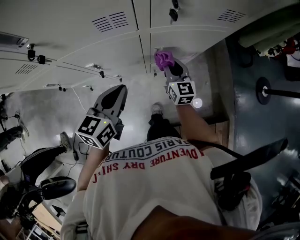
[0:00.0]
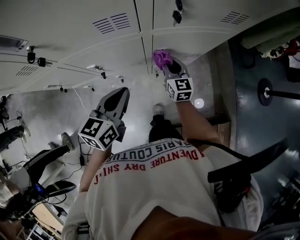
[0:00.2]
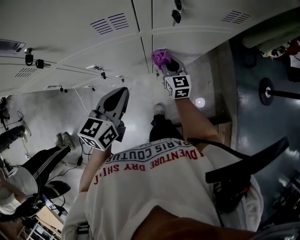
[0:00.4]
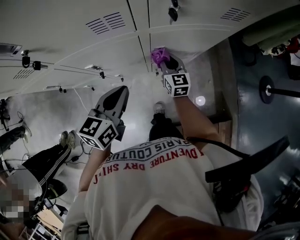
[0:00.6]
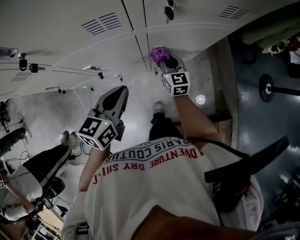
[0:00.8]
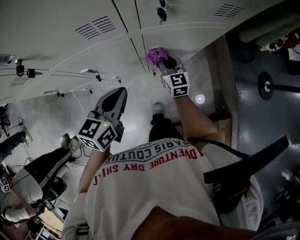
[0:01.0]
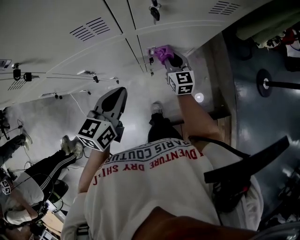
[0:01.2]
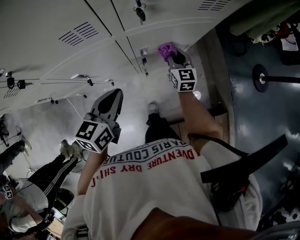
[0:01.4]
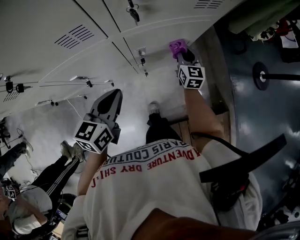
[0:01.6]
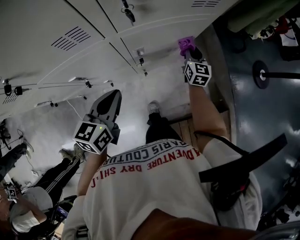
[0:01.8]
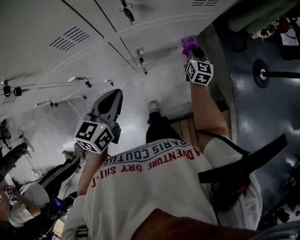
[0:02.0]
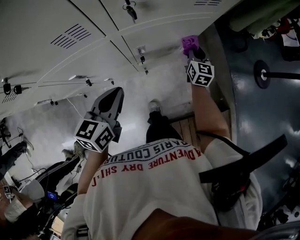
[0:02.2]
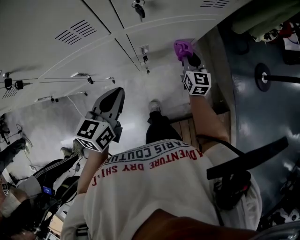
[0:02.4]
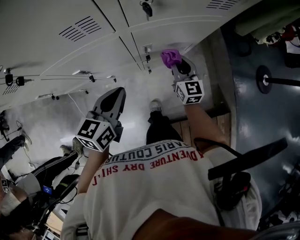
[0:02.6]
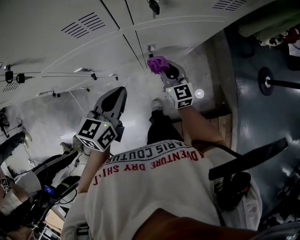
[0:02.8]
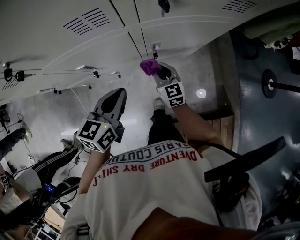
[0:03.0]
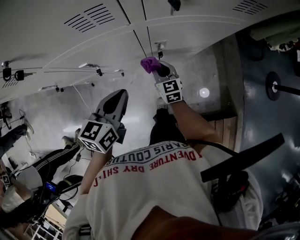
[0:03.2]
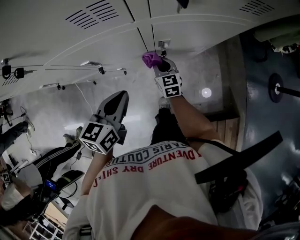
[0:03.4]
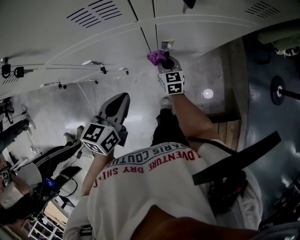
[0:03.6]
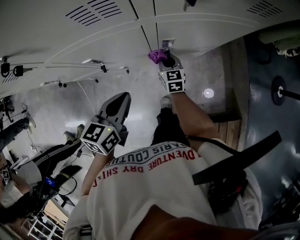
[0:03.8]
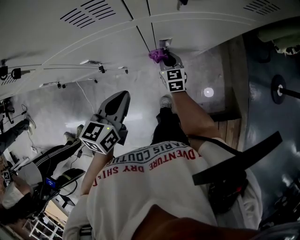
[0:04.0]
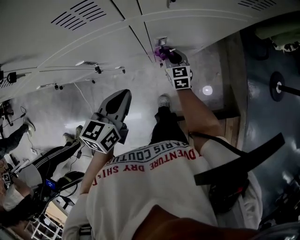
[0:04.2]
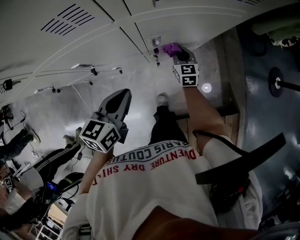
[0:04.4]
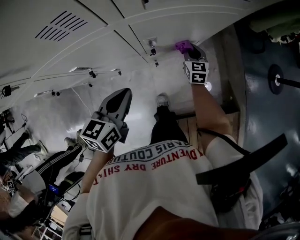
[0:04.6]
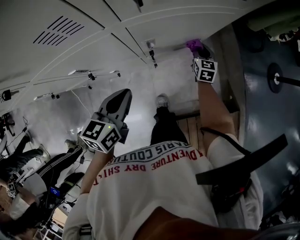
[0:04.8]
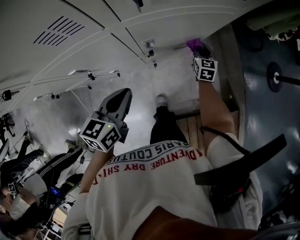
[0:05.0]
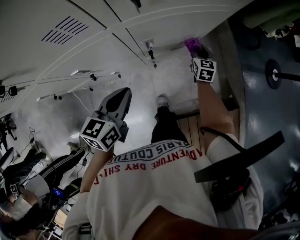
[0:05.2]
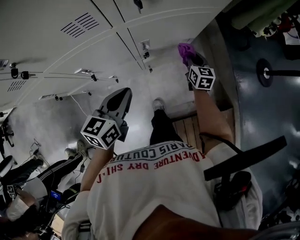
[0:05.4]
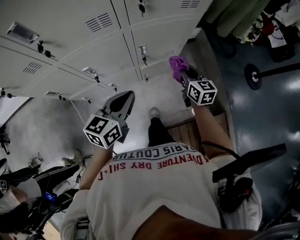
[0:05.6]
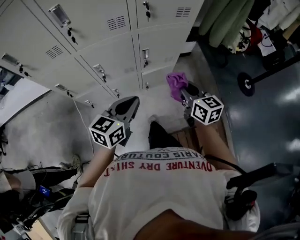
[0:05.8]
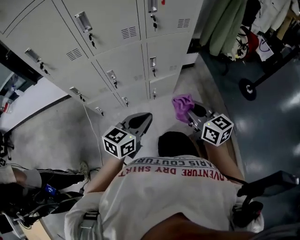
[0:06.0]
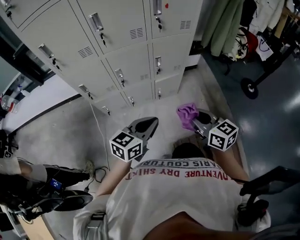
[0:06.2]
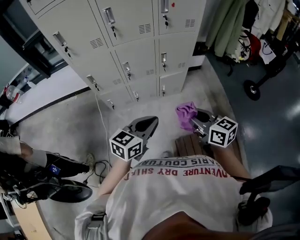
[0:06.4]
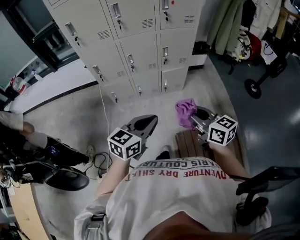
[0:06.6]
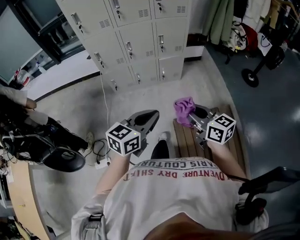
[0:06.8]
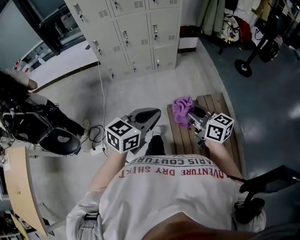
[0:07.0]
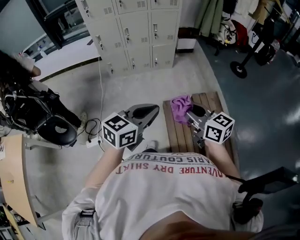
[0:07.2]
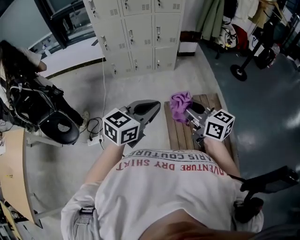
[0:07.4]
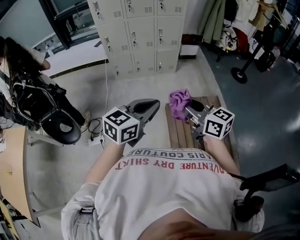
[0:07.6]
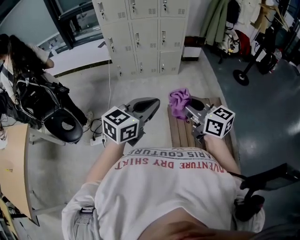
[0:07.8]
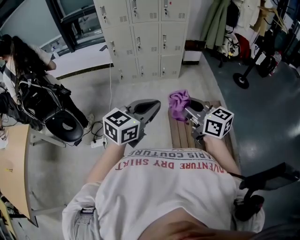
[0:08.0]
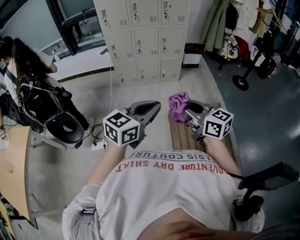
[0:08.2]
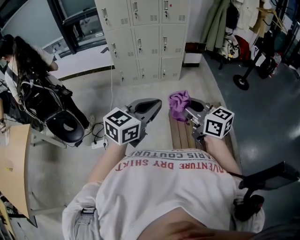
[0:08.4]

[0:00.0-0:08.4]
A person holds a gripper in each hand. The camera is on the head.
0:00.0 to 0:01.4: The right gripper moves to the right and forward, some 10 cm.
0:01.4 to 0:02.8: The right gripper is displaced backward by approximately 10 cm, and moves approximately 10 cm to the right and comes back.
0:02.8 to 0:04.2: The right gripper travels downward and forward by roughly 15 cm.
0:04.2 to 0:05.6: The right gripper is displaced upward, to the right and backward by roughly 30 cm, while the left gripper travels upward, backward and to the right by approximately 15 cm.
0:05.6 to 0:07.0: Both grippers are carried backward, some 80 cm. The right gripper rotates about 30 degrees.
0:07.0 to 0:08.4: Both grippers move backward and upward, about 20 cm.

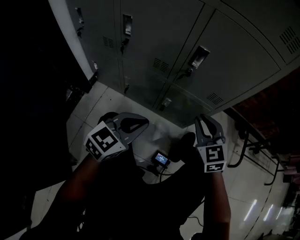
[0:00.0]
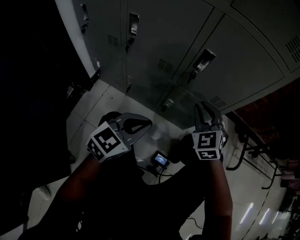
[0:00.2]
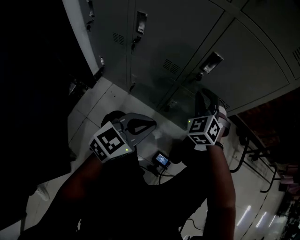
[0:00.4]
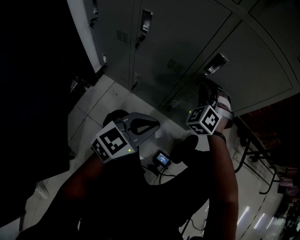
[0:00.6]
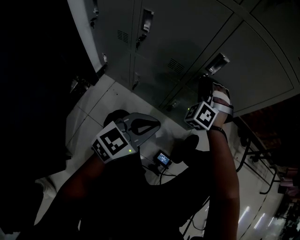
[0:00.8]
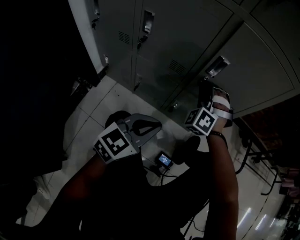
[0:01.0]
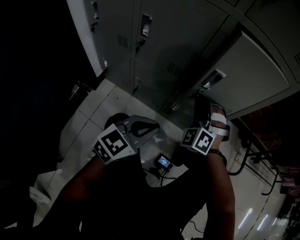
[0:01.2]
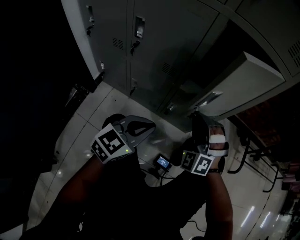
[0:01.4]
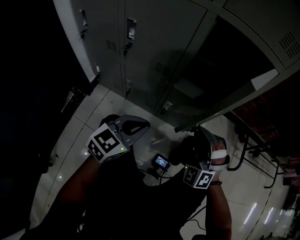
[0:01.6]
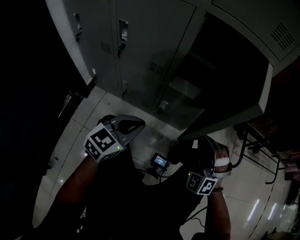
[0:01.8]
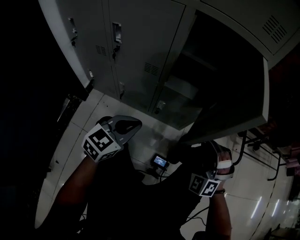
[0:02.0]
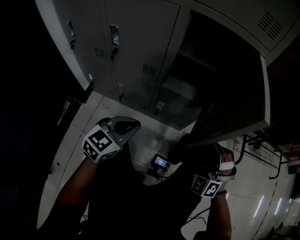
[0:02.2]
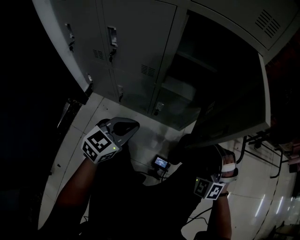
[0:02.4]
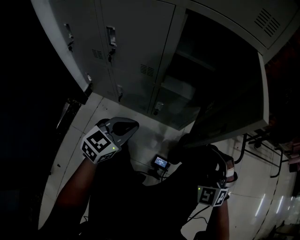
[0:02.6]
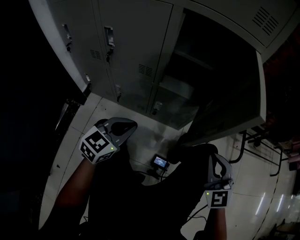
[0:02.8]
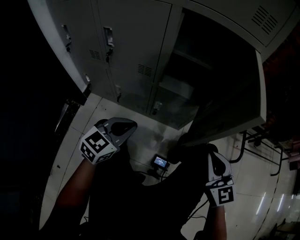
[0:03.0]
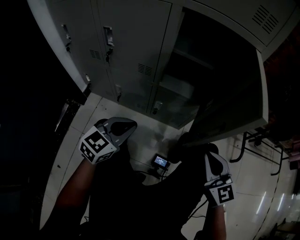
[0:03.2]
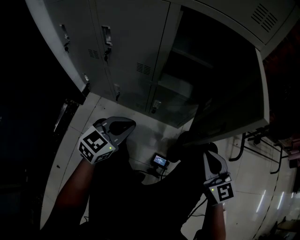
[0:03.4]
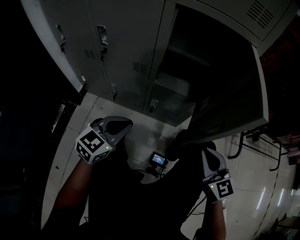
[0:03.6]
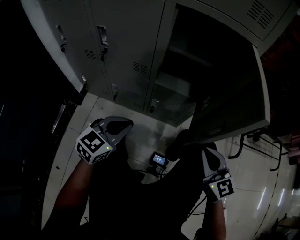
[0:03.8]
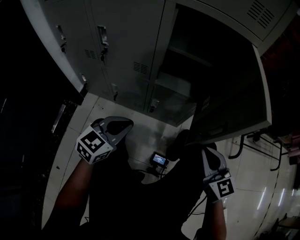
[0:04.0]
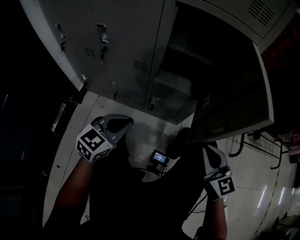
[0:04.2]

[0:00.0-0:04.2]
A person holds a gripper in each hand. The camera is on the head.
0:00.0 to 0:01.4: The right gripper is displaced to the left by about 5 cm, reaches approximately 10 cm forward, then returns, and twists about 50 degrees counterclockwise, seen from behind.
0:01.4 to 0:02.8: The right gripper is displaced to the right and backward by approximately 20 cm, and twists some 50 degrees clockwise, seen from behind.
0:02.8 to 0:04.2: The right gripper turns by about 30 degrees.

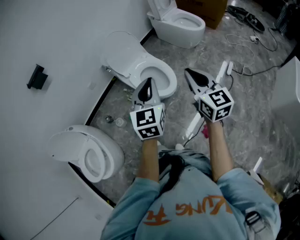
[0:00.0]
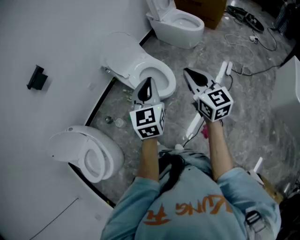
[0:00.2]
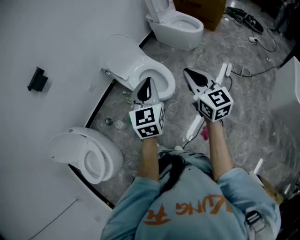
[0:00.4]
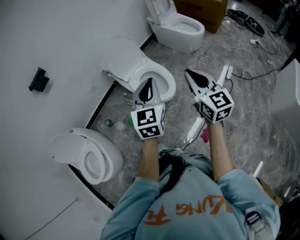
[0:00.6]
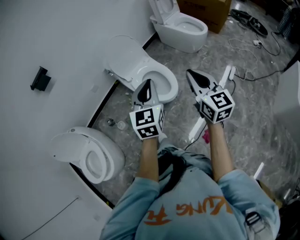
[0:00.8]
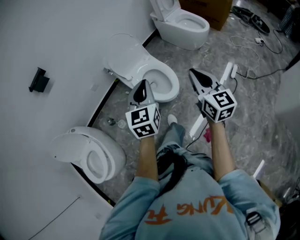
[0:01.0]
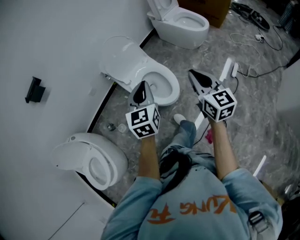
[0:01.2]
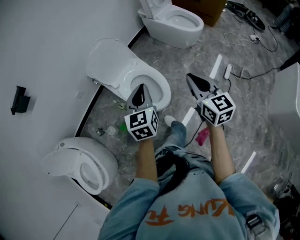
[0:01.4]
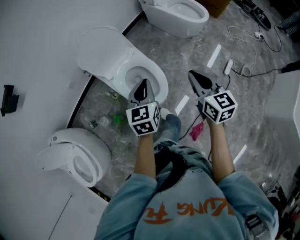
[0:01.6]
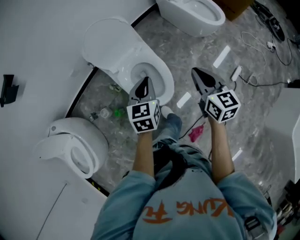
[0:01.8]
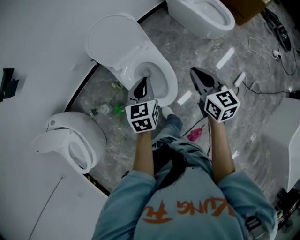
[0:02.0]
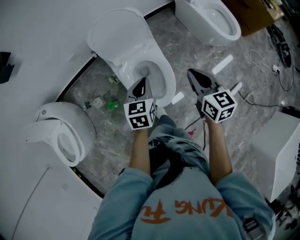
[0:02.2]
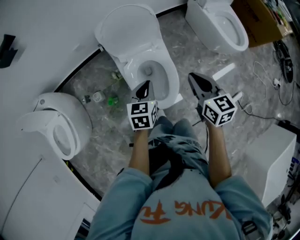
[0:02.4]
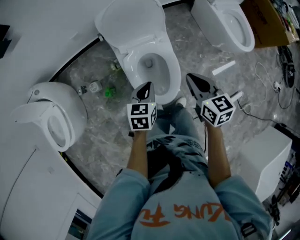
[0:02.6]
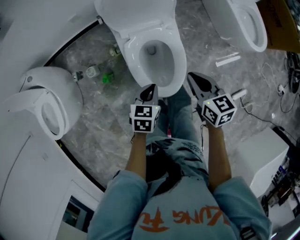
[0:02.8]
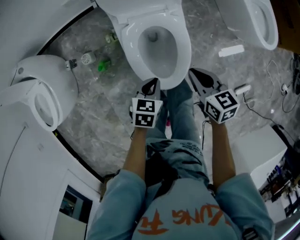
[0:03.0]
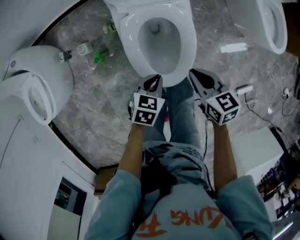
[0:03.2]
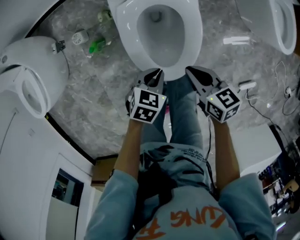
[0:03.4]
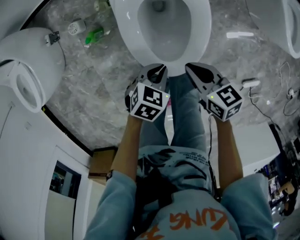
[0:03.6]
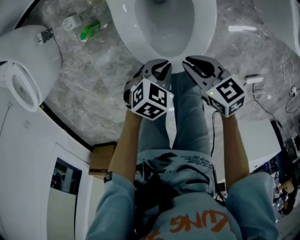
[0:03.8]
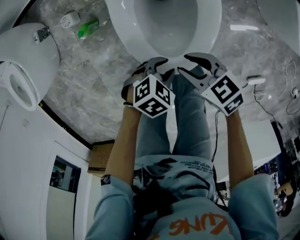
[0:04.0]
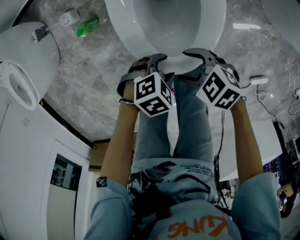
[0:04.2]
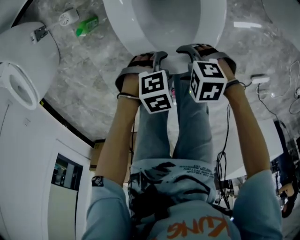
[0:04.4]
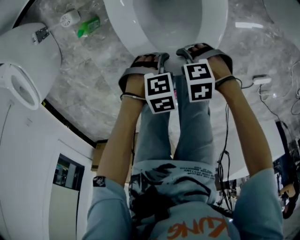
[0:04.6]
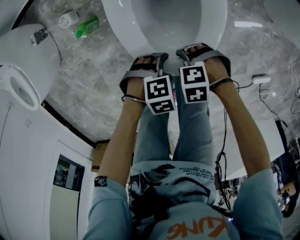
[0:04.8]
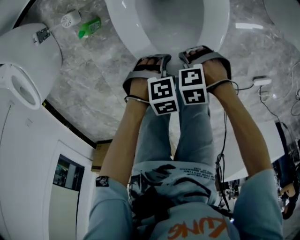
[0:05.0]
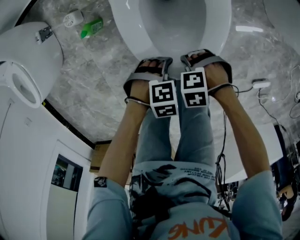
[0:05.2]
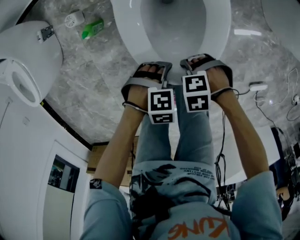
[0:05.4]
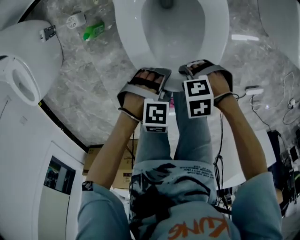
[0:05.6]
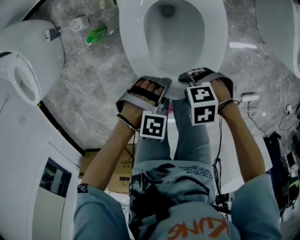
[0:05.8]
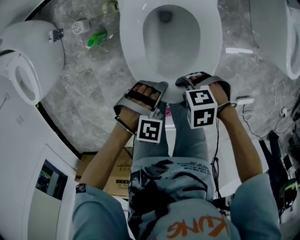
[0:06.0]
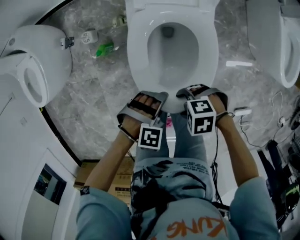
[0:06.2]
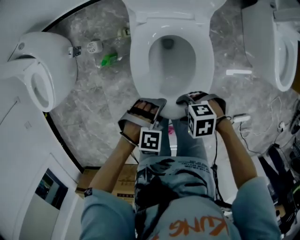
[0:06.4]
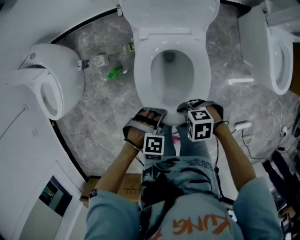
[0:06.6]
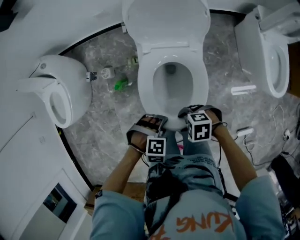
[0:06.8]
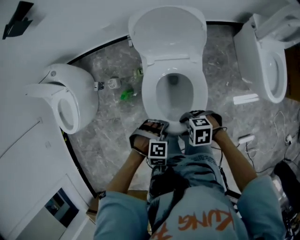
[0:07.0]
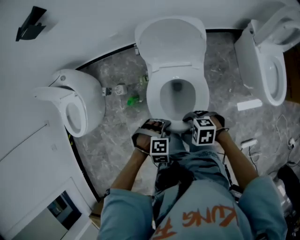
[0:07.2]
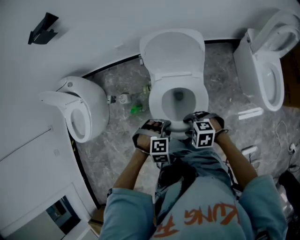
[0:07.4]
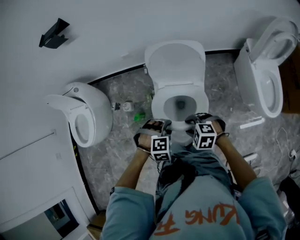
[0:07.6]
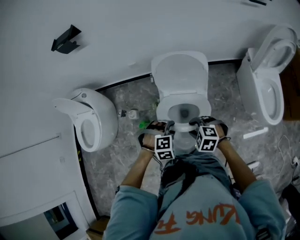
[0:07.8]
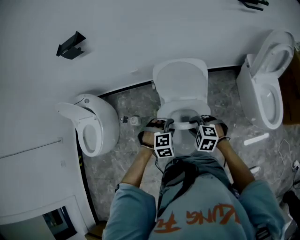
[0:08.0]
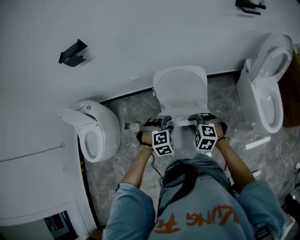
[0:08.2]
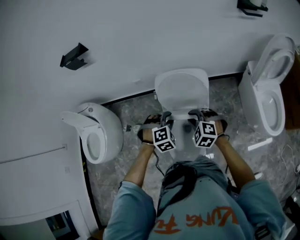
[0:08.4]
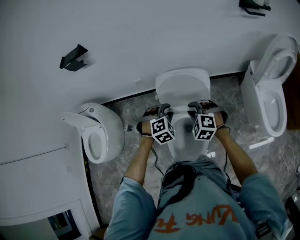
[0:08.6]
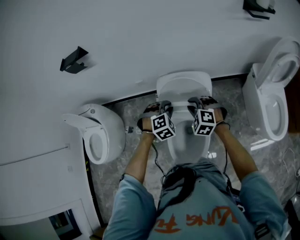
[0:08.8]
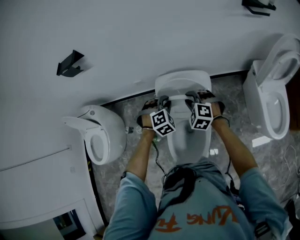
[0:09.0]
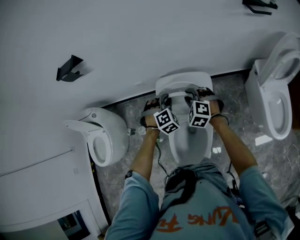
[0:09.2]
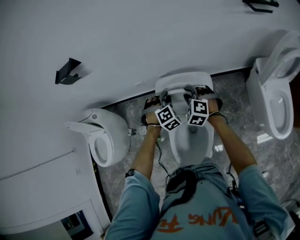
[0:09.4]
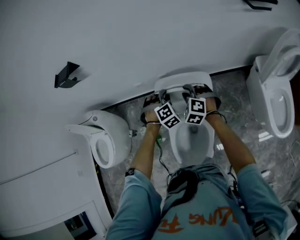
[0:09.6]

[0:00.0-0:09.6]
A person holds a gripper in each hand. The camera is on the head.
0:00.0 to 0:01.6: The right gripper moves forward, downward and to the right, approximately 30 cm; the left gripper is displaced forward and downward by approximately 30 cm.
0:01.6 to 0:03.2: The left gripper is displaced downward by some 35 cm, and swivels some 30 degrees, while the right gripper heads downward and forward, covering some 35 cm, and swivels some 50 degrees.
0:03.2 to 0:04.8: Both grippers move downward, roughly 20 cm. The right gripper rotates roughly 90 degrees, and opens its fingers. The left gripper twists approximately 50 degrees clockwise, seen from behind, and opens up.
0:04.8 to 0:06.4: The two grippers go some 20 cm upward.
0:06.4 to 0:08.0: The grippers both shift upward by approximately 20 cm. The left gripper swivels some 20 degrees, and closes; the right gripper turns by about 40 degrees, and closes its fingers.
0:08.0 to 0:09.6: Both grippers travel together forward, about 30 cm. The right gripper swivels some 20 degrees. The left gripper rotates about 30 degrees.

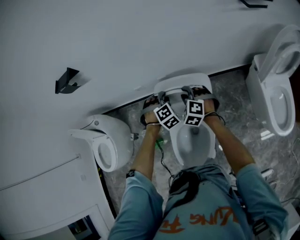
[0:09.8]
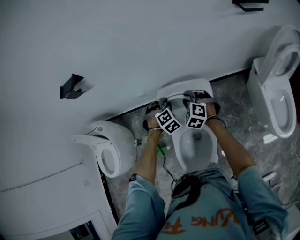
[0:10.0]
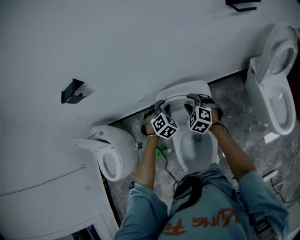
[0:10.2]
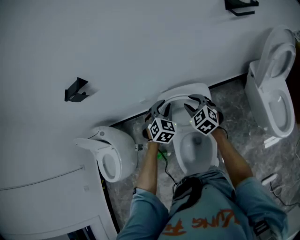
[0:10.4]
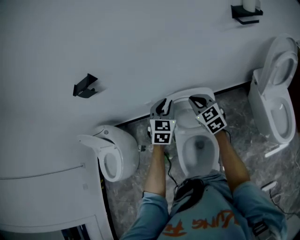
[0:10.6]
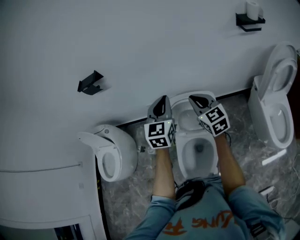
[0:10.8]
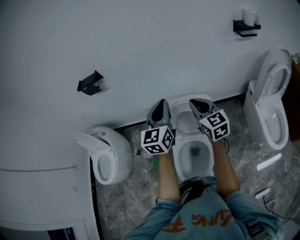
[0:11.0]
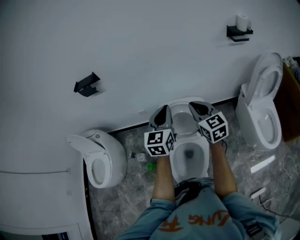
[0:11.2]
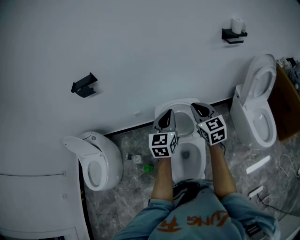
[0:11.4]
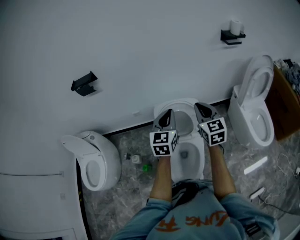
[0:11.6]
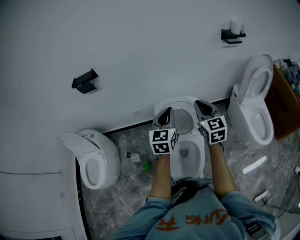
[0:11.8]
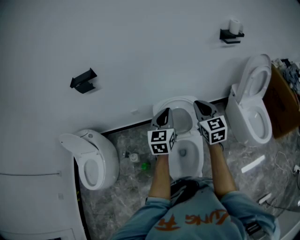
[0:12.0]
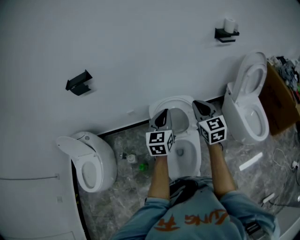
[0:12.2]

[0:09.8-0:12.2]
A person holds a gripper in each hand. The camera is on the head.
0:09.8 to 0:11.0: The right gripper is displaced upward and backward by about 25 cm, and tips its fingers upward by roughly 30 degrees. Meanwhile the left gripper shifts about 30 cm upward, and tilts its fingers roughly 50 degrees upward.
0:11.0 to 0:12.2: The right gripper moves backward, roughly 10 cm. The left gripper travels backward and downward by some 10 cm.
